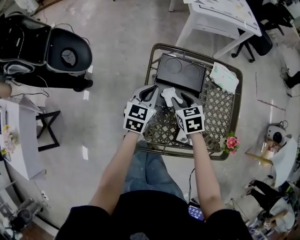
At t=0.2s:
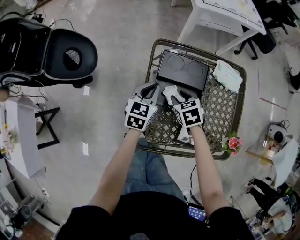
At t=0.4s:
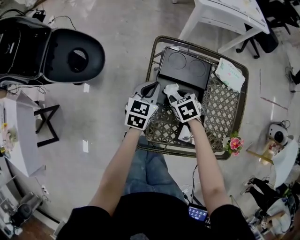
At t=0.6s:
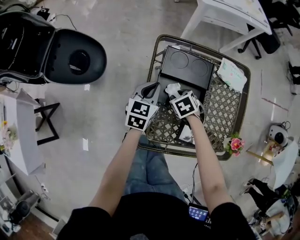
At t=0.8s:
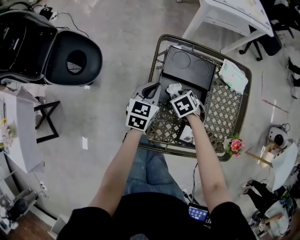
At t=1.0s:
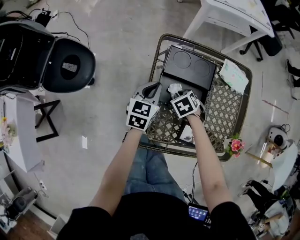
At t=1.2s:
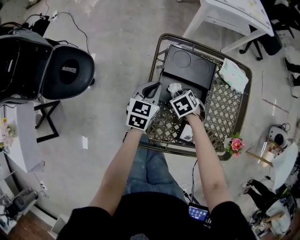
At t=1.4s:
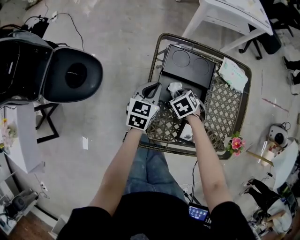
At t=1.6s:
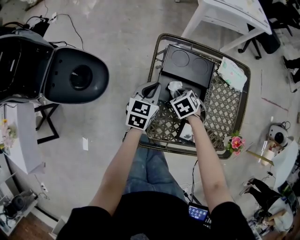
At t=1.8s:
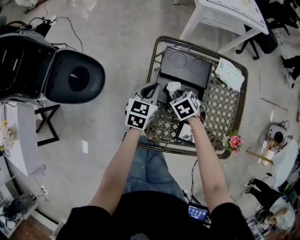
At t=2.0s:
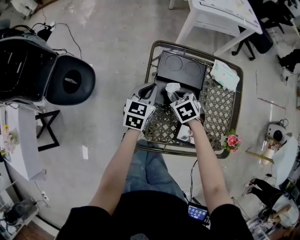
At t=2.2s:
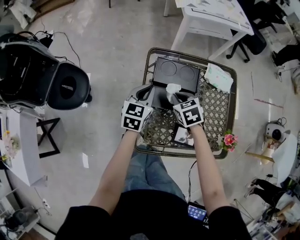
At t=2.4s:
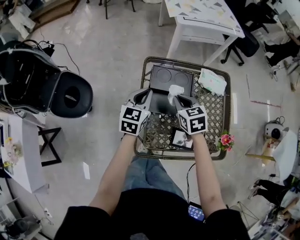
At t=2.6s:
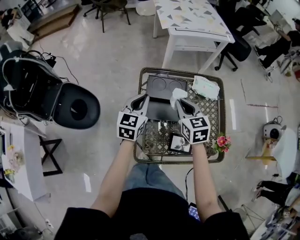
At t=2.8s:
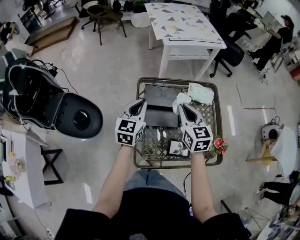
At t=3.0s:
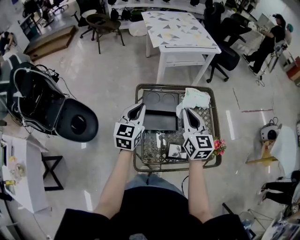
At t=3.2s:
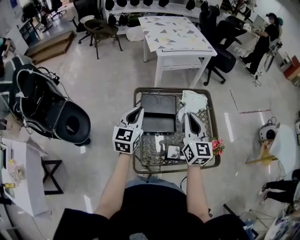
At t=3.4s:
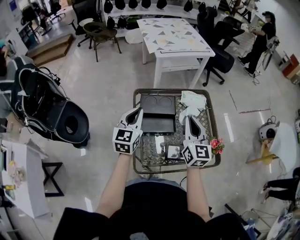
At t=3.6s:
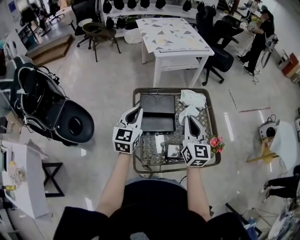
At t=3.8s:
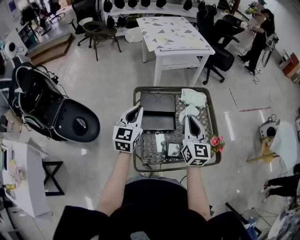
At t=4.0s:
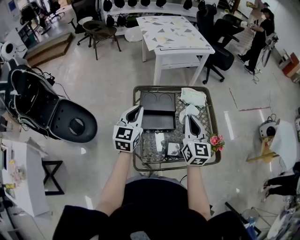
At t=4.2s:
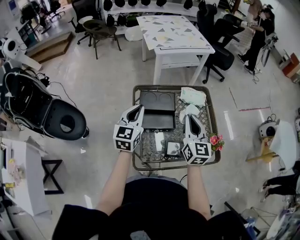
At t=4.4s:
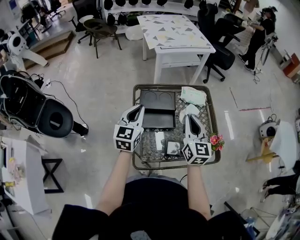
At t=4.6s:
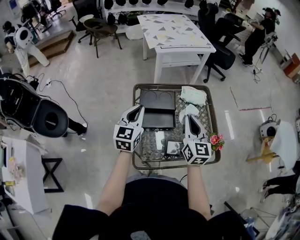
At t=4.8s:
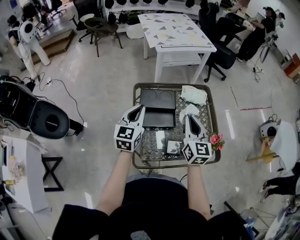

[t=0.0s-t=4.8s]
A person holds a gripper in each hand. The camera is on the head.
t=0.0s to t=1.6s: The right gripper travels downward by approximately 10 cm, turns by about 20 degrees, and closes its fingers. The left gripper travels downward by approximately 5 cm.
t=1.6s to t=3.2s: The right gripper shifts roughly 35 cm upward, and tips its fingers upward by roughly 70 degrees; the left gripper goes approximately 25 cm upward, and swivels roughly 20 degrees.
t=3.2s to t=4.8s: The grippers make only small movements.

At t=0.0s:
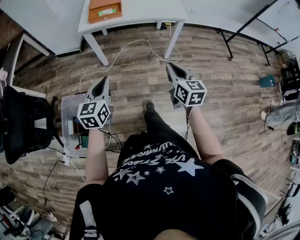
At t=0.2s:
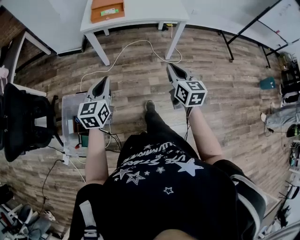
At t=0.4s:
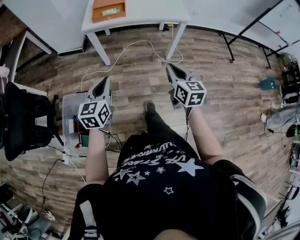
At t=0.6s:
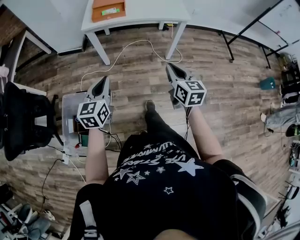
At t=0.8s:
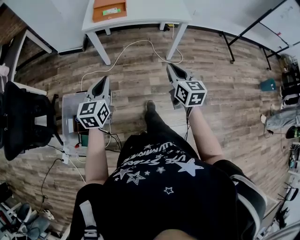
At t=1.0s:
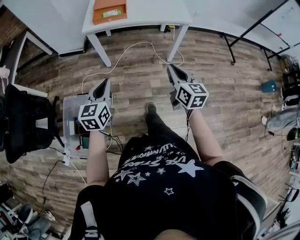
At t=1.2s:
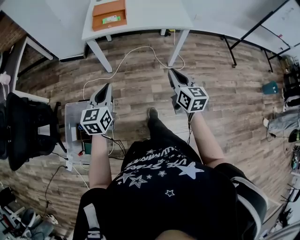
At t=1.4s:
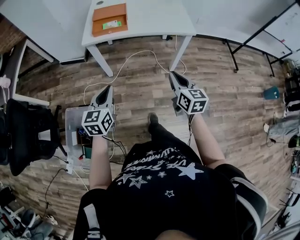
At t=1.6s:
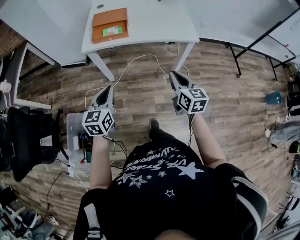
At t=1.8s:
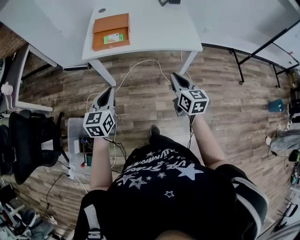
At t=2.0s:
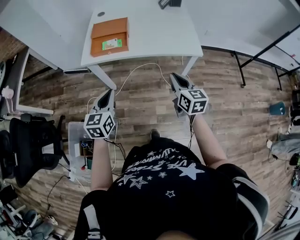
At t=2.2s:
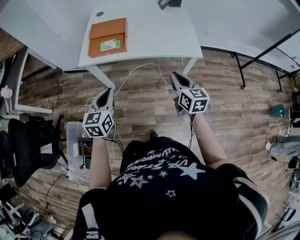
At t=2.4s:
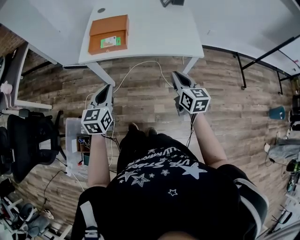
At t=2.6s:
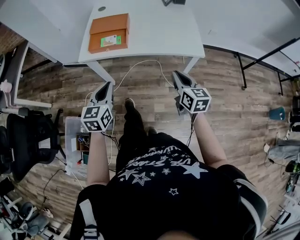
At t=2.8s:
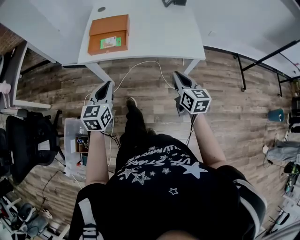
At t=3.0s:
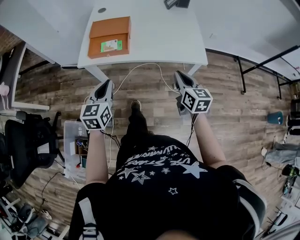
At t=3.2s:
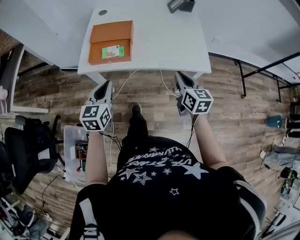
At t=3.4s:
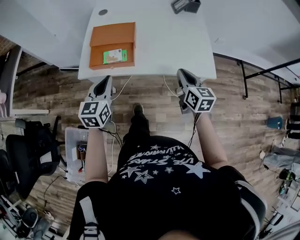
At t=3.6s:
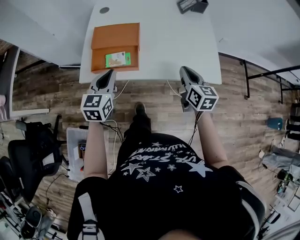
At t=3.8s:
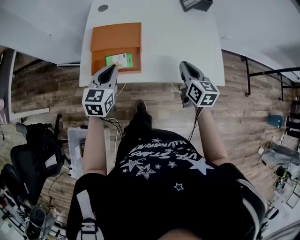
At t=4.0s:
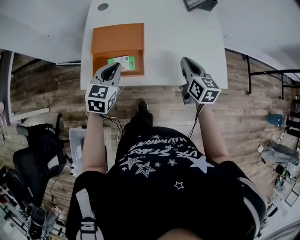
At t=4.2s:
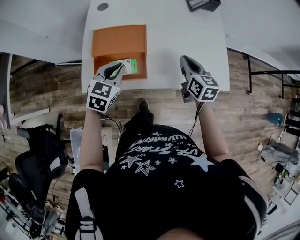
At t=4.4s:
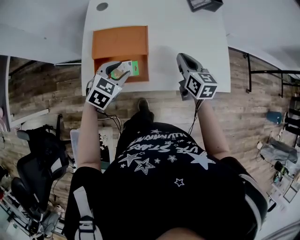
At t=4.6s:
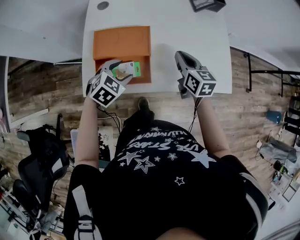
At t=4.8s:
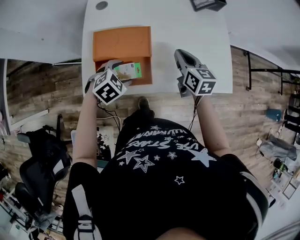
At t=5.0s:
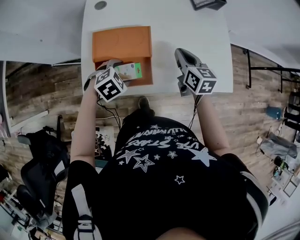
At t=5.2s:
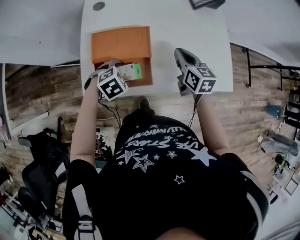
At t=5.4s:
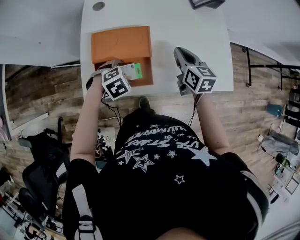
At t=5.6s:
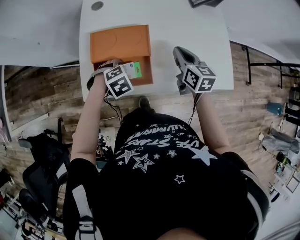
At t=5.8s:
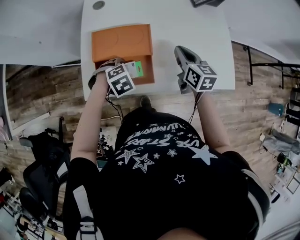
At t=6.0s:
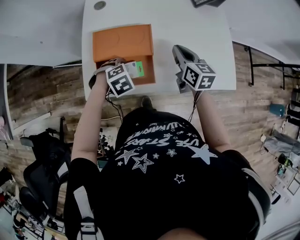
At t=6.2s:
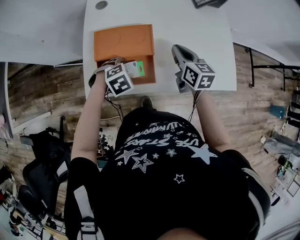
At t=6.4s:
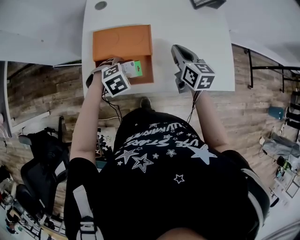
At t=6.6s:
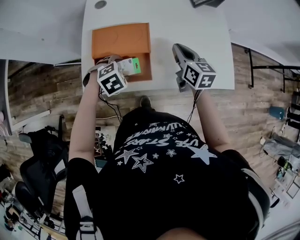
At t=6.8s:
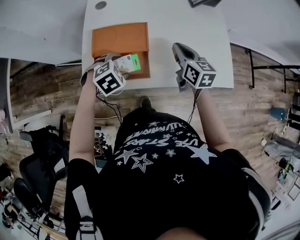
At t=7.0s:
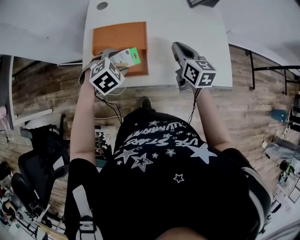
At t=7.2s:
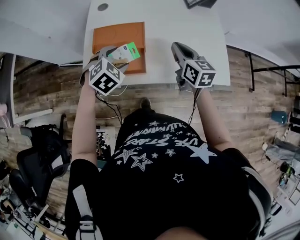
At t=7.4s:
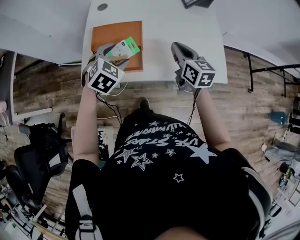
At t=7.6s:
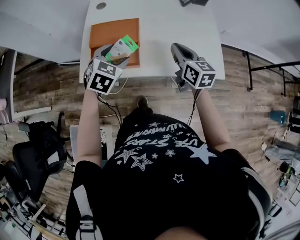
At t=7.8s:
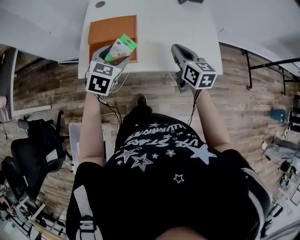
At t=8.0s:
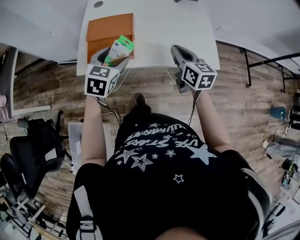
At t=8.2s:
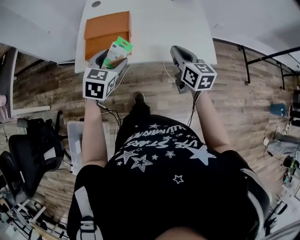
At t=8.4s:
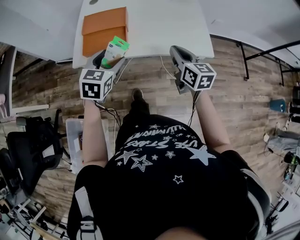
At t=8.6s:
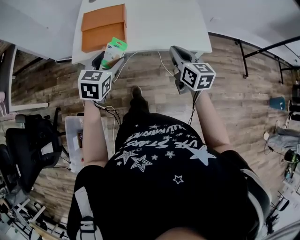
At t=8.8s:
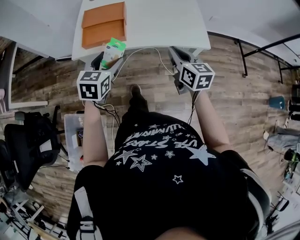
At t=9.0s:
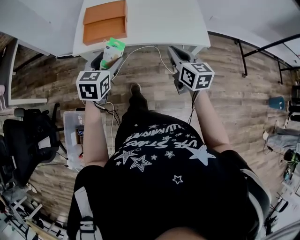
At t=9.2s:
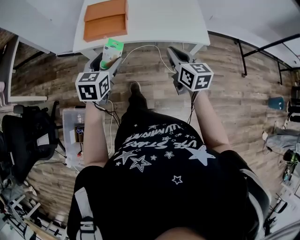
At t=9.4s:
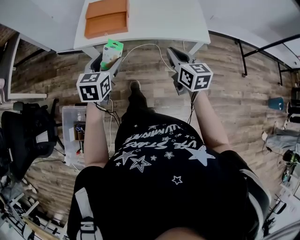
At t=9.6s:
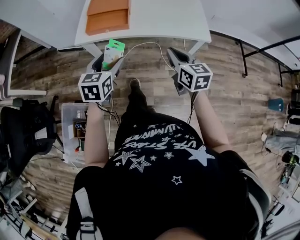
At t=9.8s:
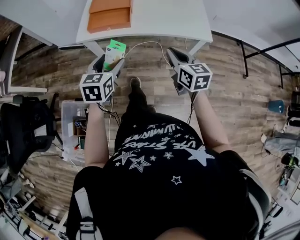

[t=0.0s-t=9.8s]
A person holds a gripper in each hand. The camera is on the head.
t=0.0s to t=1.4s: The two grippers go about 10 cm forward.
t=1.4s to t=2.8s: Both grippers travel together forward, about 25 cm.
t=2.8s to t=4.2s: The two grippers go about 35 cm forward. The left gripper swivels about 30 degrees.
t=4.2s to t=5.6s: The left gripper travels downward by about 10 cm, tips its fingers downward by approximately 40 degrees, and opens its fingers. The right gripper changes place by approximately 10 cm.
t=5.6s to t=7.0s: The left gripper goes approximately 10 cm upward. The right gripper changes place by roughly 5 cm.
t=7.0s to t=8.4s: The right gripper moves backward and to the right, approximately 25 cm, while the left gripper heads backward and upward, covering some 20 cm, and swivels some 40 degrees.
t=8.4s to t=9.8s: Both grippers move backward, some 15 cm.

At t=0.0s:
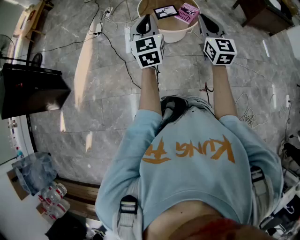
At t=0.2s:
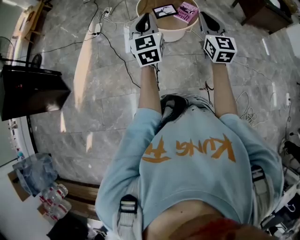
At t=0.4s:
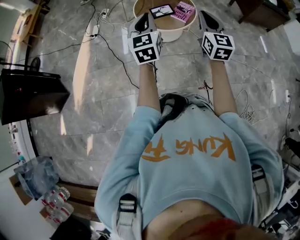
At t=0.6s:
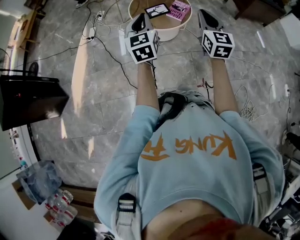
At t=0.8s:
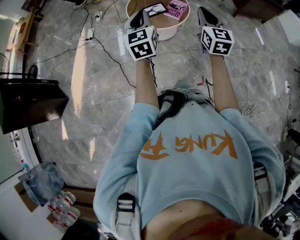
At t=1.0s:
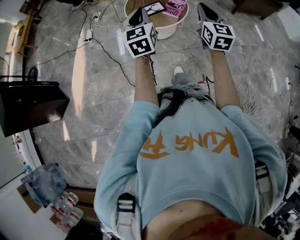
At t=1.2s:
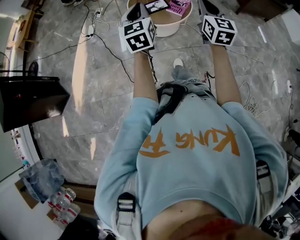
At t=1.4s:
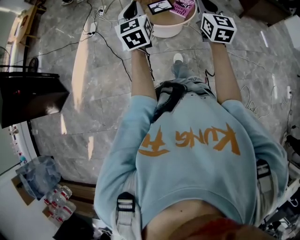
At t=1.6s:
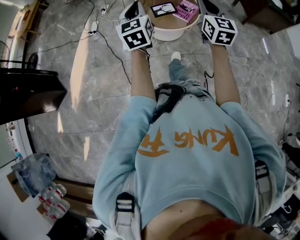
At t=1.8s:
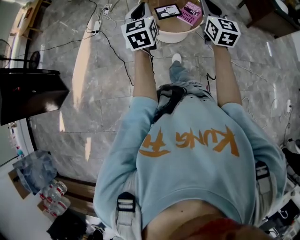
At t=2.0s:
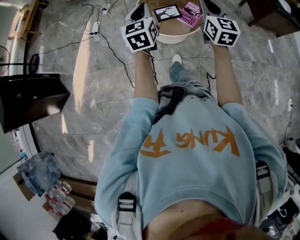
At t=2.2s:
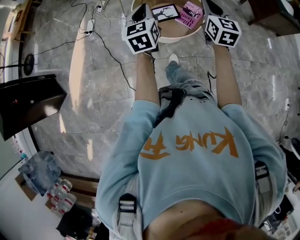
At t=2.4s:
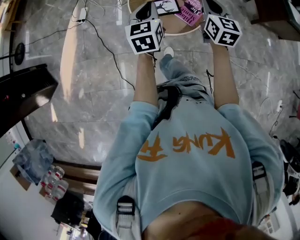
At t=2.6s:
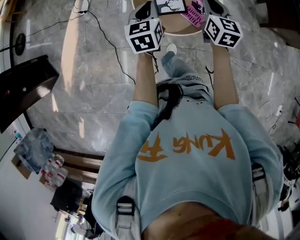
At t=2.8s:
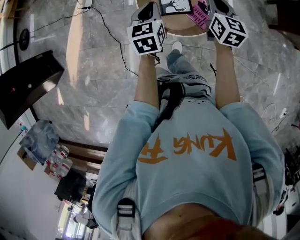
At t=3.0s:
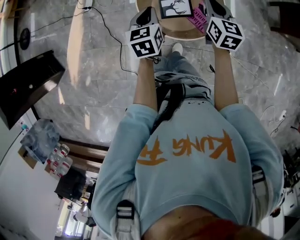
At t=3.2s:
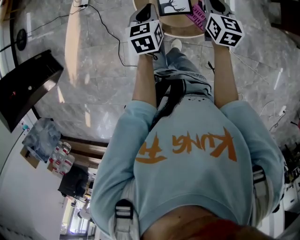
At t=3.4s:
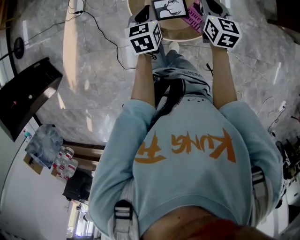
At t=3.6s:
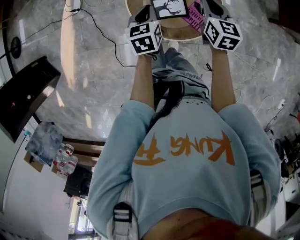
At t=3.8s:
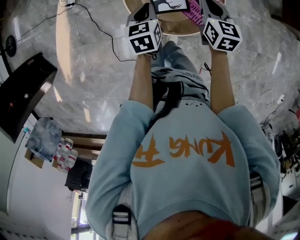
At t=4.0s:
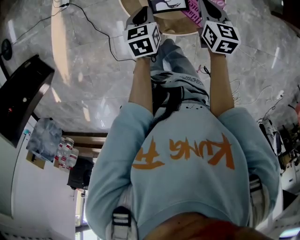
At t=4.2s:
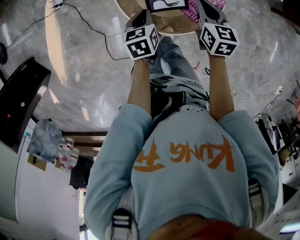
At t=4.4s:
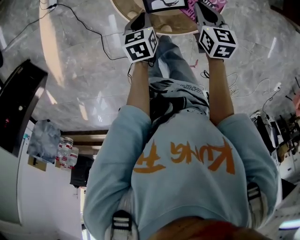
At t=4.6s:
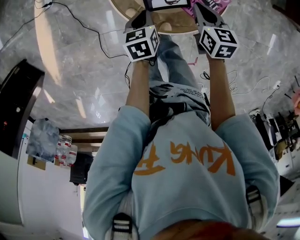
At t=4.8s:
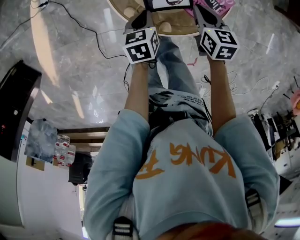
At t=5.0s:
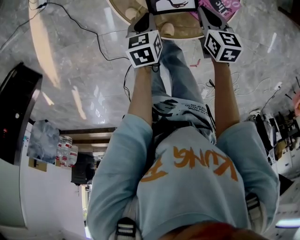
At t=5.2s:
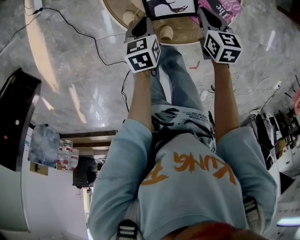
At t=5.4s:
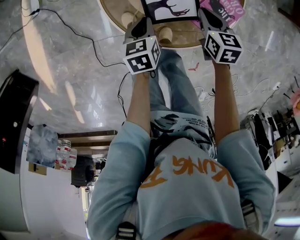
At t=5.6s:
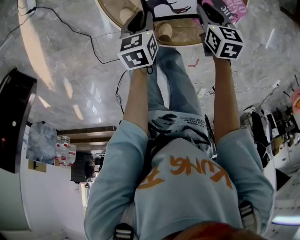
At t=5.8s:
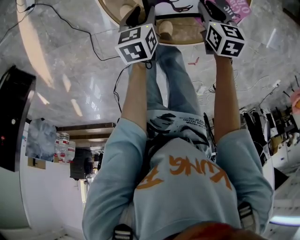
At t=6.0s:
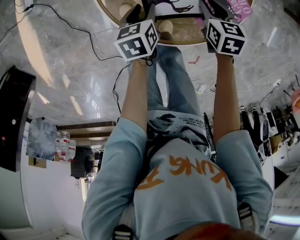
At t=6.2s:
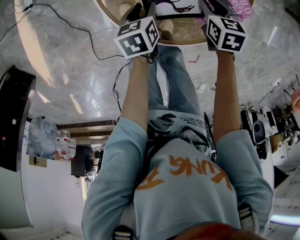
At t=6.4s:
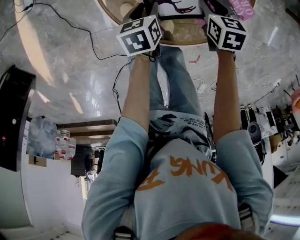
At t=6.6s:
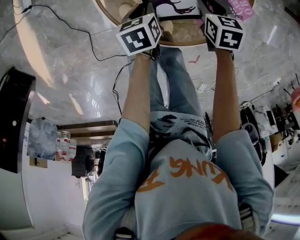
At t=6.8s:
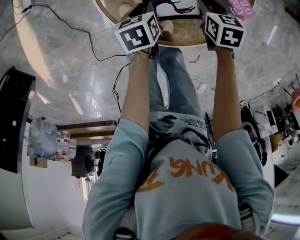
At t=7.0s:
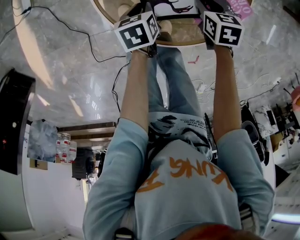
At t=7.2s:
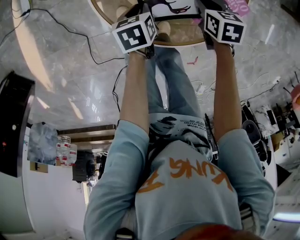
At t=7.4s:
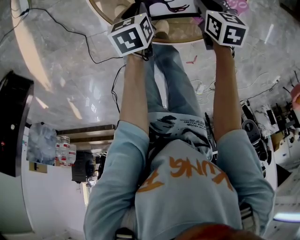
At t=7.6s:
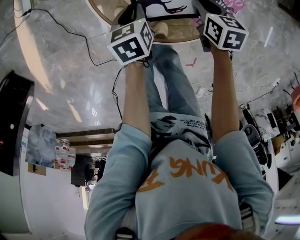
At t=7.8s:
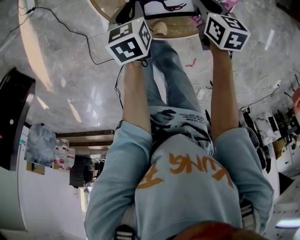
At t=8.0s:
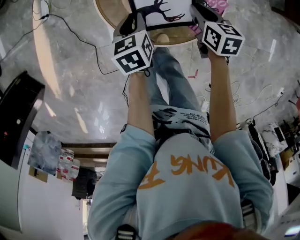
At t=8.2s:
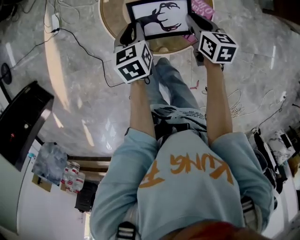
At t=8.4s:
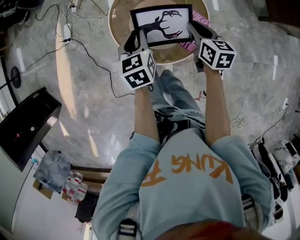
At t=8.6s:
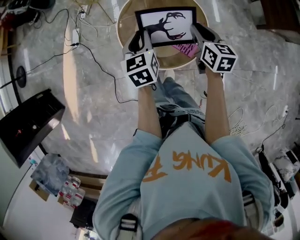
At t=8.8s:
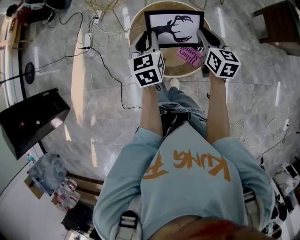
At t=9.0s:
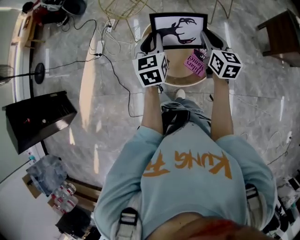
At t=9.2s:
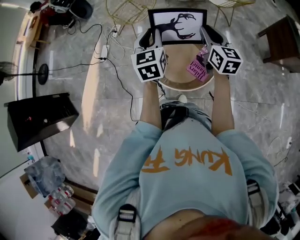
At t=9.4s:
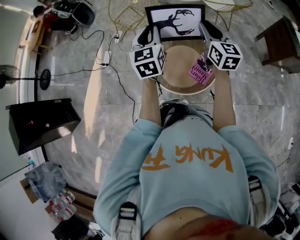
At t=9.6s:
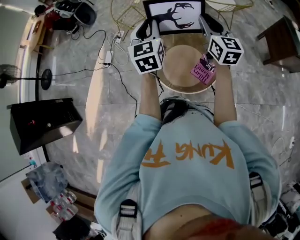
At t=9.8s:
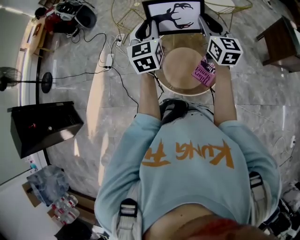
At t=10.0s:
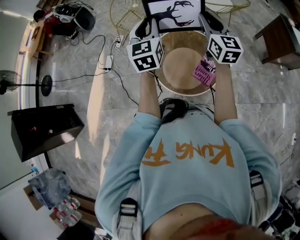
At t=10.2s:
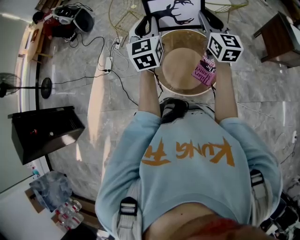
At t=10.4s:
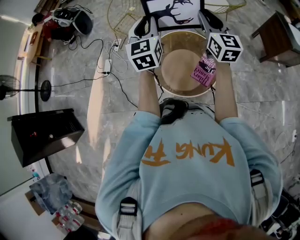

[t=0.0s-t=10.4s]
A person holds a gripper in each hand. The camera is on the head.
t=0.0s to t=1.4s: The two grippers go approximately 5 cm forward.
t=1.4s to t=3.0s: The pair of grippers is taken forward, roughly 40 cm. The grippers both shift downward by about 20 cm. The left gripper turns by some 30 degrees, while the right gripper changes its angle by some 20 degrees.
t=3.0s to t=4.4s: Both grippers travel together downward, roughly 20 cm. The left gripper turns by roughly 20 degrees; the right gripper changes its angle by about 20 degrees.
t=4.4s to t=6.0s: The grippers both shift downward by about 20 cm. The right gripper opens, while the left gripper opens its fingers.
t=6.0s to t=7.4s: The left gripper closes its fingers.
t=7.4s to t=9.0s: The two grippers go approximately 50 cm upward. The left gripper tips its fingers upward by approximately 40 degrees. Meanwhile the right gripper angles its fingers upward, by some 40 degrees.
t=9.0s to t=10.4s: The left gripper travels upward, to the left and forward by approximately 15 cm. Meanwhile the right gripper heads upward and to the left, covering approximately 20 cm, and turns by approximately 20 degrees.
